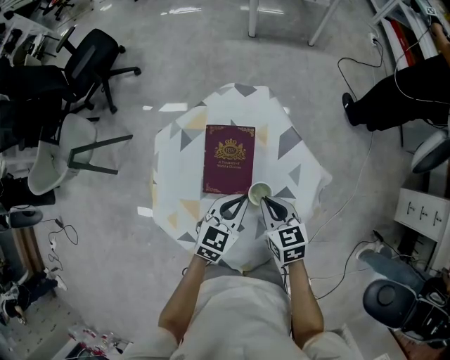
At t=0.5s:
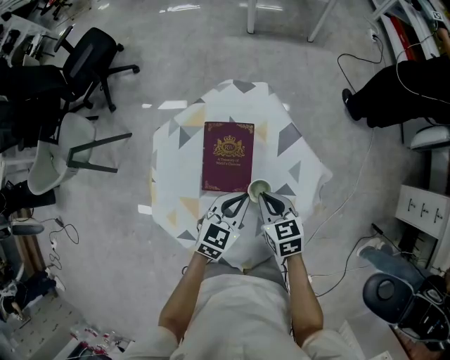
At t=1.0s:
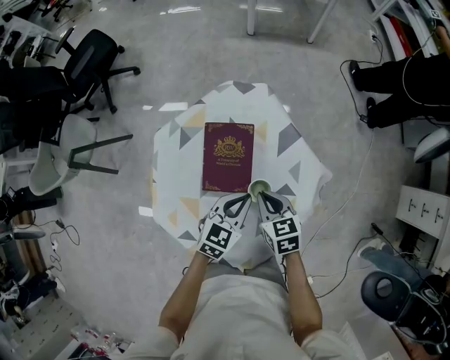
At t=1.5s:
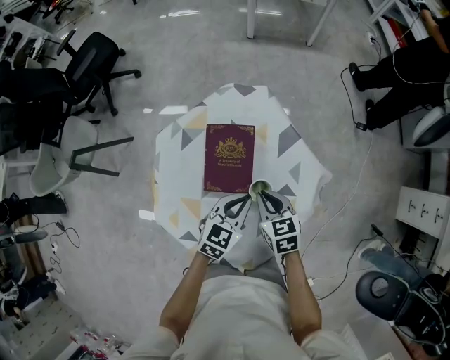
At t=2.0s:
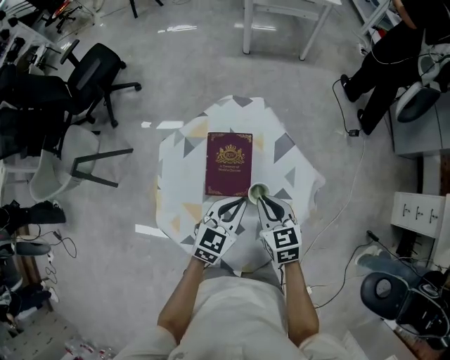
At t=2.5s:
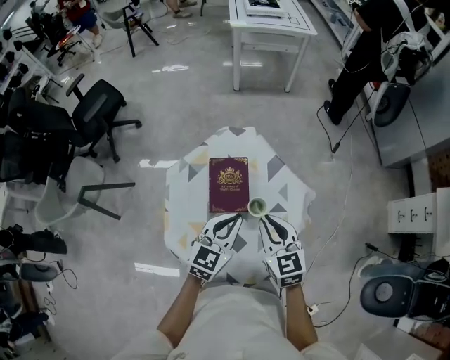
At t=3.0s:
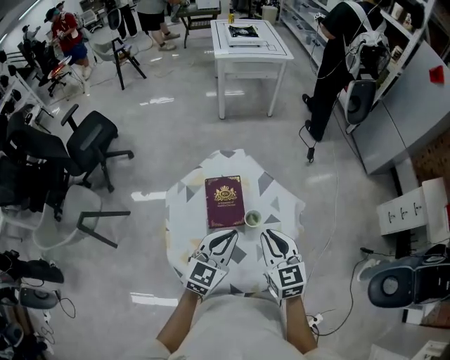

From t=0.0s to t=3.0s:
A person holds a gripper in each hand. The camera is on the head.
From t=0.0s to t=1.5s: There are only small adjustments of the grippers.
From t=1.5s to t=3.0s: Both grippers travel together upward, about 20 cm. The right gripper turns by approximately 30 degrees, while the left gripper rotates approximately 20 degrees.

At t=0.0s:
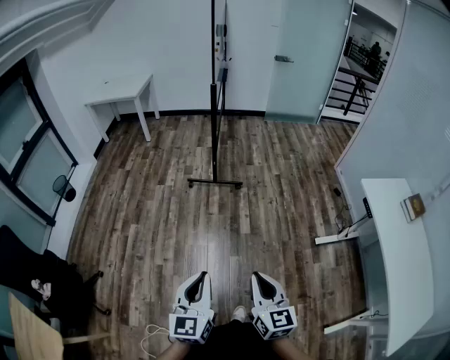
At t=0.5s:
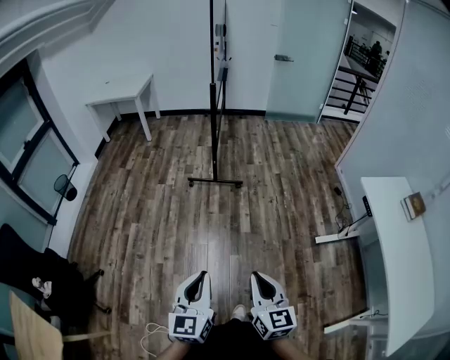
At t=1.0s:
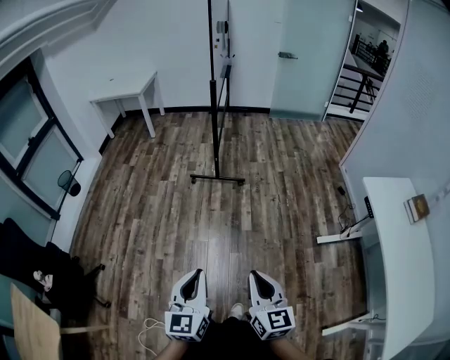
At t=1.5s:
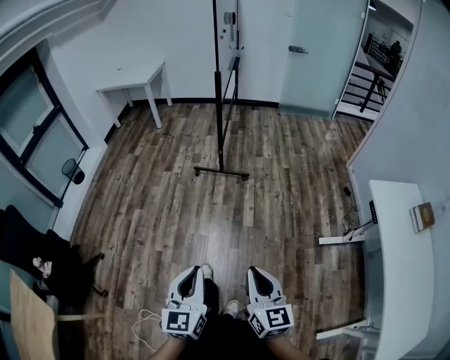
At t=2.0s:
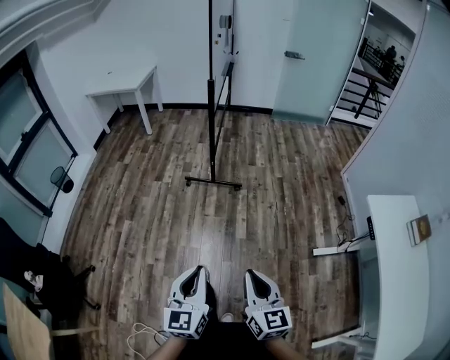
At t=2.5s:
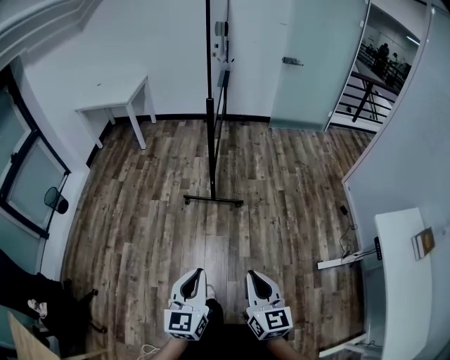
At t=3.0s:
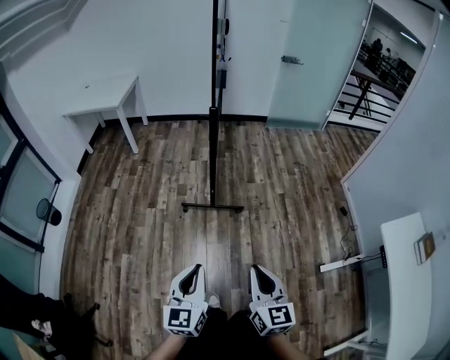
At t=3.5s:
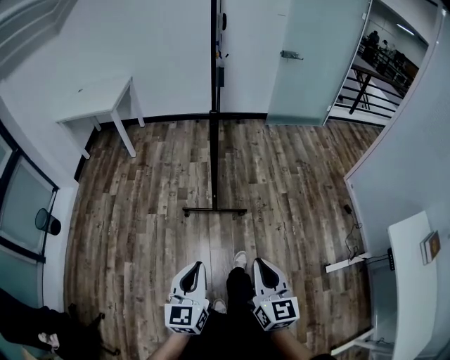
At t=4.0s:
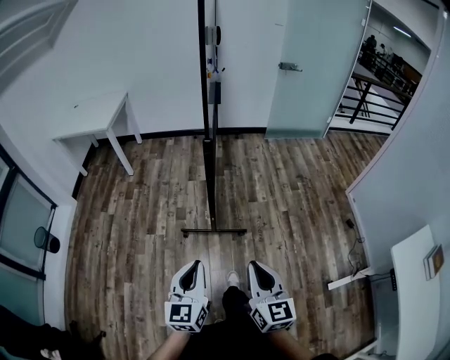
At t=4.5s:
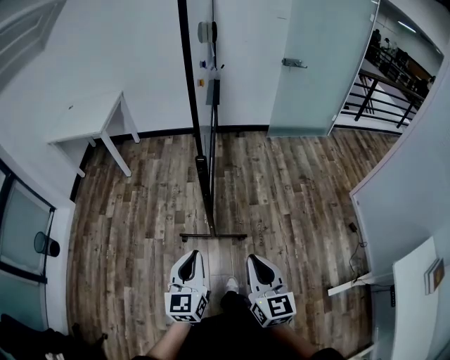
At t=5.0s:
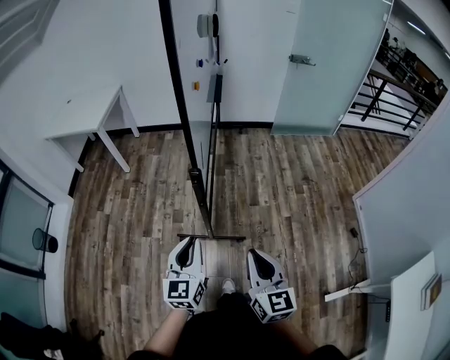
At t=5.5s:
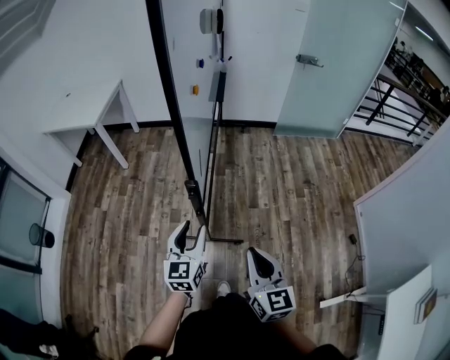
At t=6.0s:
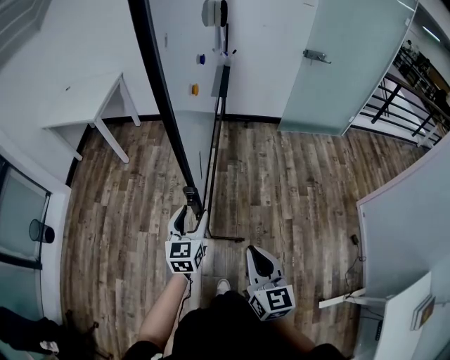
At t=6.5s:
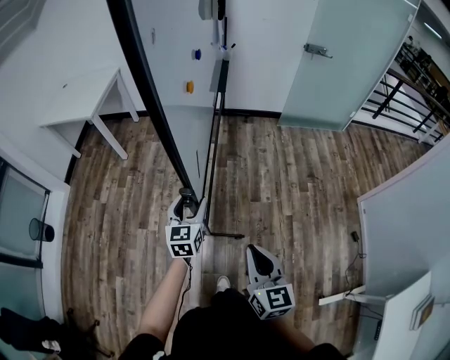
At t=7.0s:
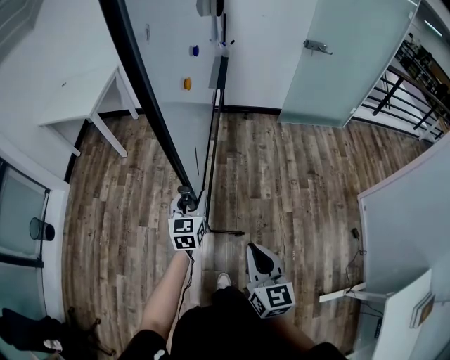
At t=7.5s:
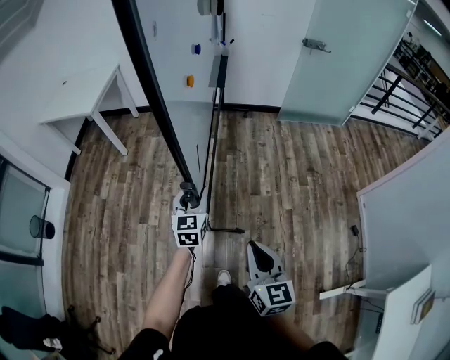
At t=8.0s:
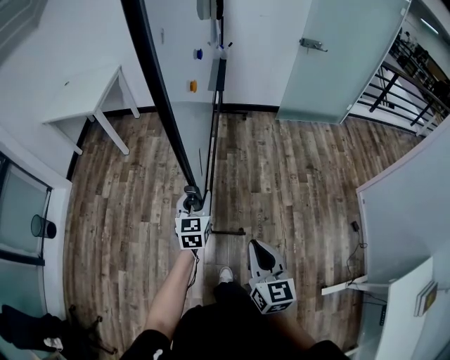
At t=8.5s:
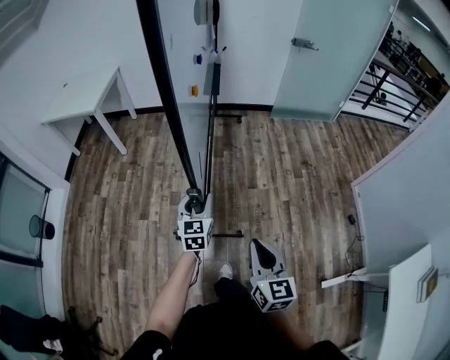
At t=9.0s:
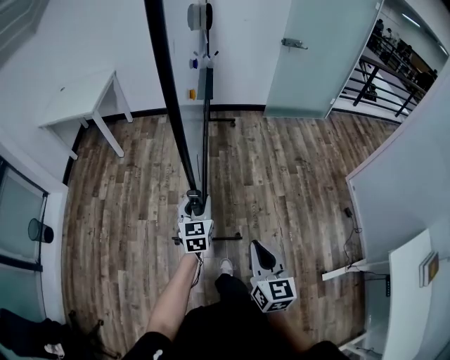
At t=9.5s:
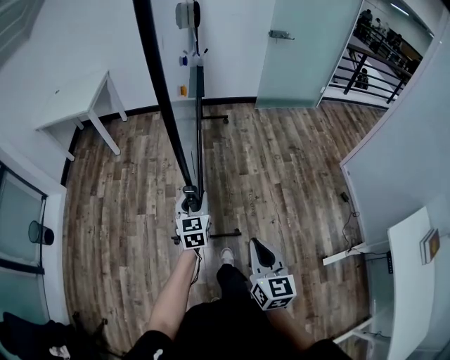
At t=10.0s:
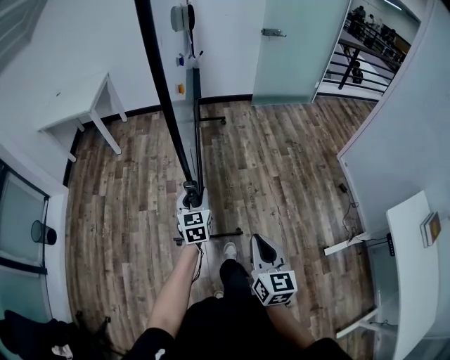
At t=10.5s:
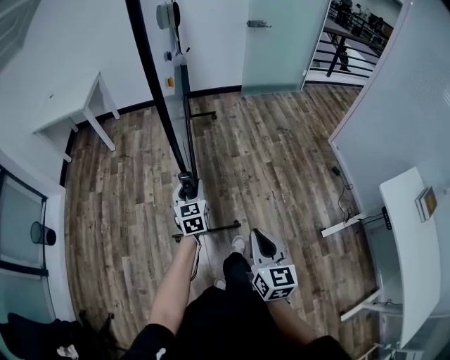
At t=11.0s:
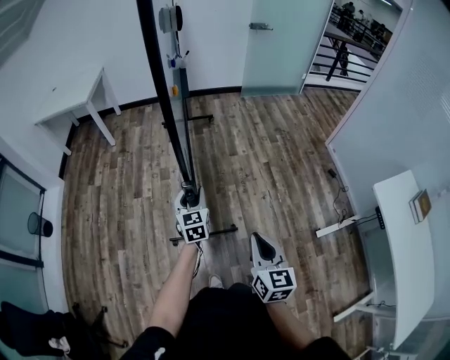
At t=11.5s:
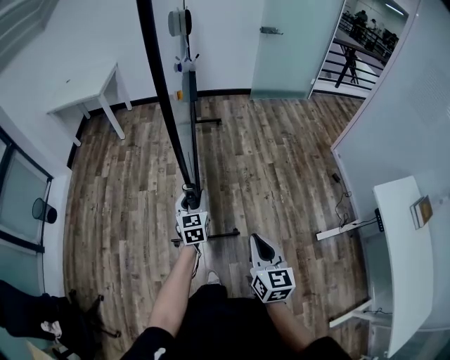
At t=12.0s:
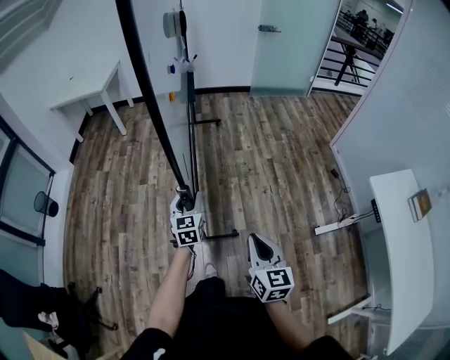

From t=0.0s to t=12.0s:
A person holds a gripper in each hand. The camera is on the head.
From t=0.0s to t=2.0s: Both grippers move forward and to the right, roughly 15 cm.
From t=2.0s to t=4.0s: Both grippers are carried forward, approximately 50 cm.
From t=4.0s to t=6.0s: The two grippers go approximately 35 cm forward. The left gripper opens its fingers.
From t=6.0s to t=8.0s: The right gripper shifts approximately 5 cm backward.
From t=8.0s to t=10.0s: Both grippers move backward, about 25 cm.
From t=10.0s to t=12.0s: The grippers both shift backward by approximately 25 cm.

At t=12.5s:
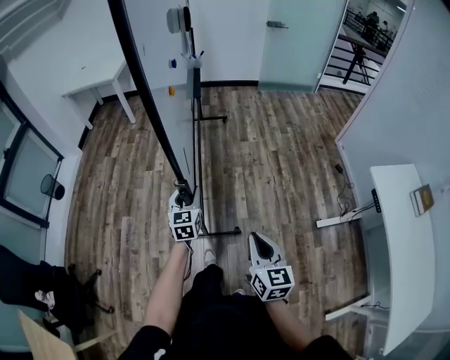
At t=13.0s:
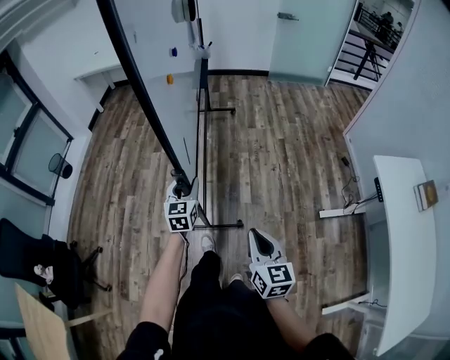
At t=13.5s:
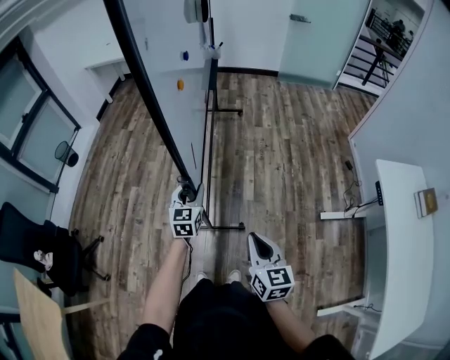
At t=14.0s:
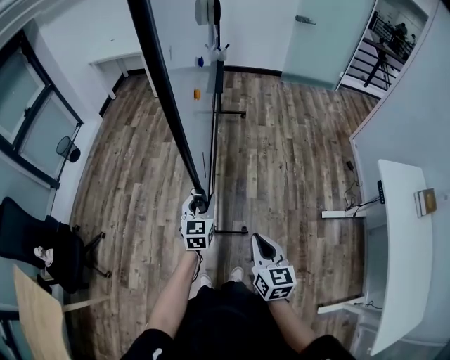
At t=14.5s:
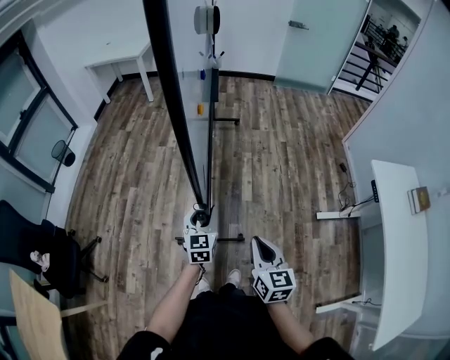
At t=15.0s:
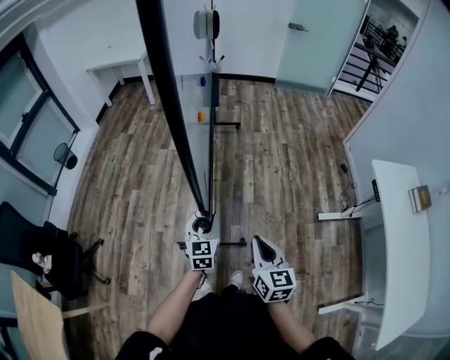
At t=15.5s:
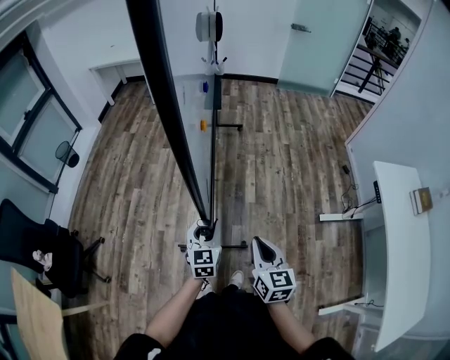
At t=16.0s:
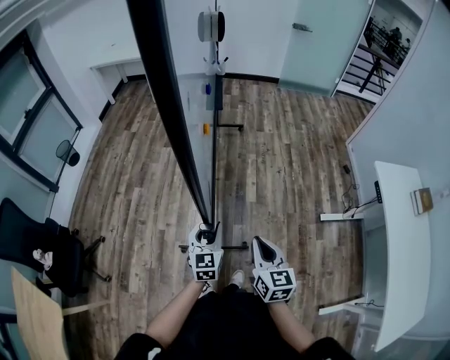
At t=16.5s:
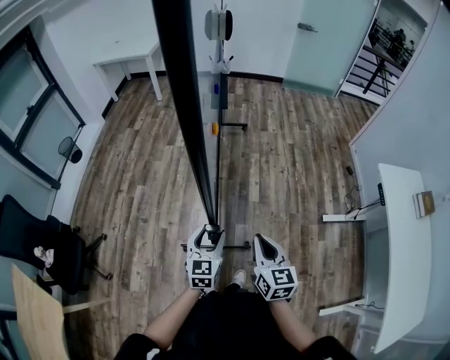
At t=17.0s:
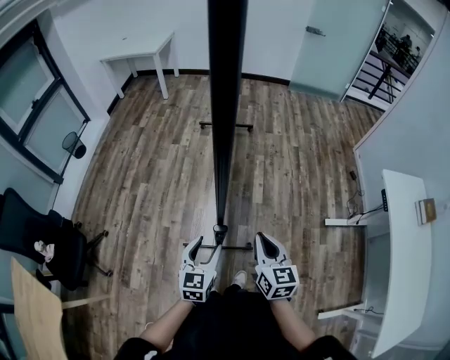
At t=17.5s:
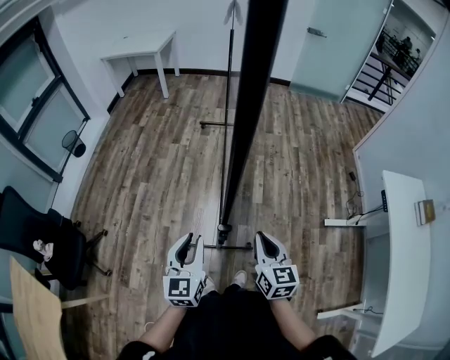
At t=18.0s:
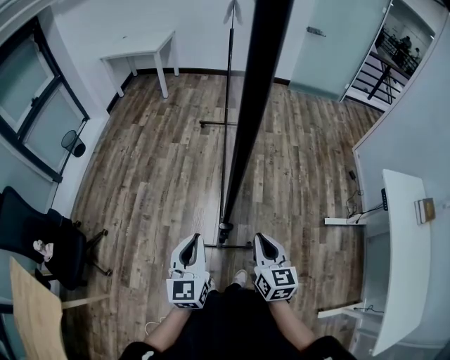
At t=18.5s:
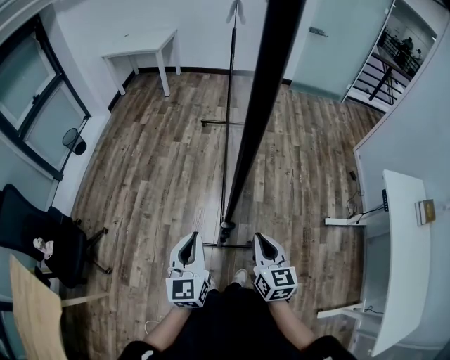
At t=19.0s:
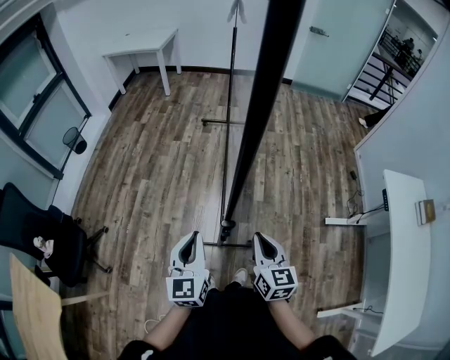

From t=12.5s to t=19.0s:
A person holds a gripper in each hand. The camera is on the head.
From t=12.5s to t=14.5s: The right gripper shifts about 15 cm backward. Meanwhile the left gripper heads backward, covering approximately 25 cm.
From t=14.5s to t=17.0s: The left gripper goes roughly 15 cm backward.
From t=17.0s to t=19.0s: The left gripper moves upward and to the left, some 10 cm, and closes its fingers.

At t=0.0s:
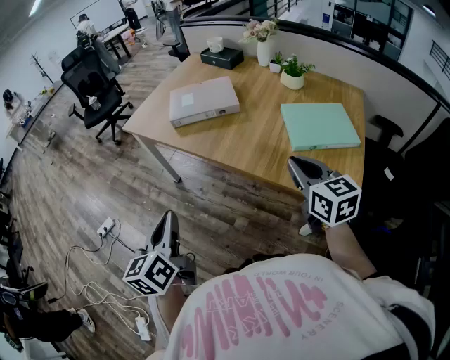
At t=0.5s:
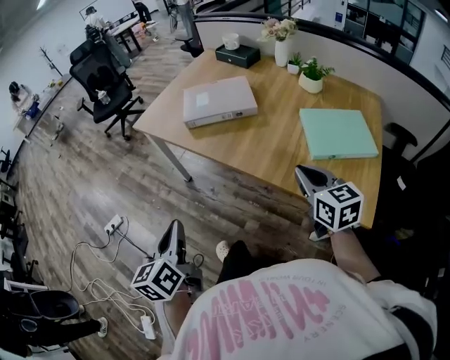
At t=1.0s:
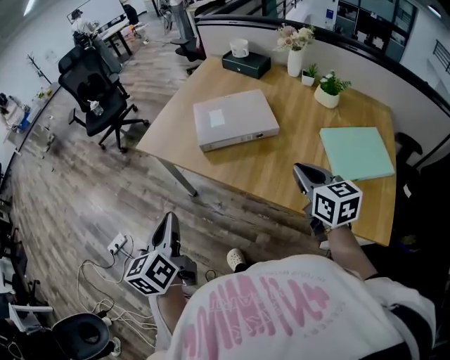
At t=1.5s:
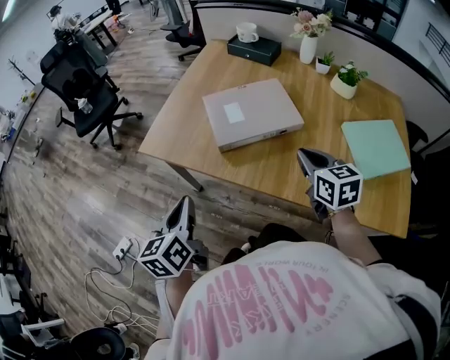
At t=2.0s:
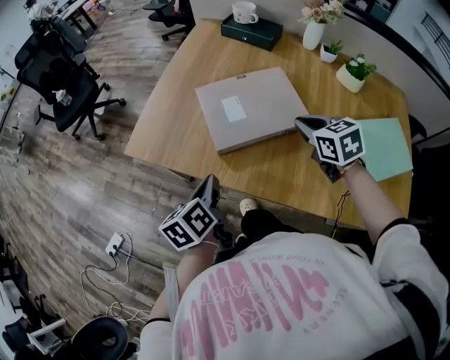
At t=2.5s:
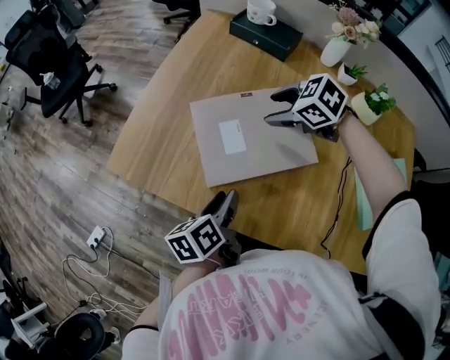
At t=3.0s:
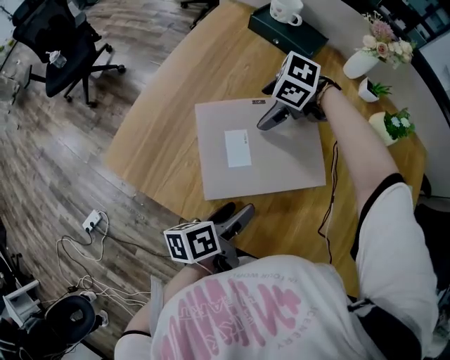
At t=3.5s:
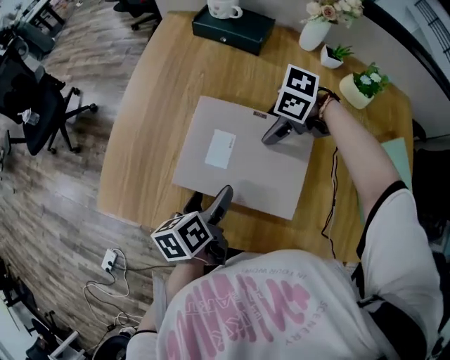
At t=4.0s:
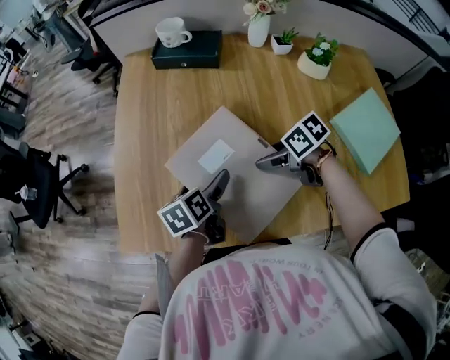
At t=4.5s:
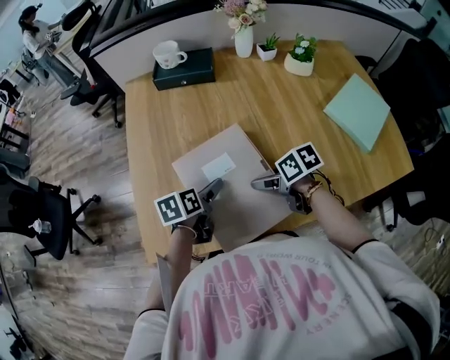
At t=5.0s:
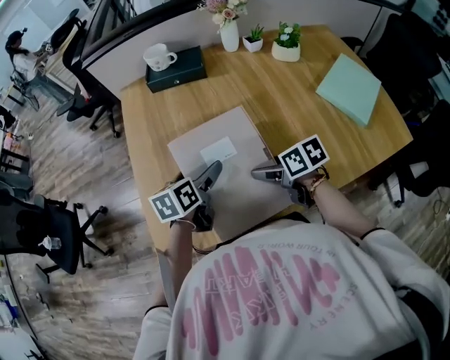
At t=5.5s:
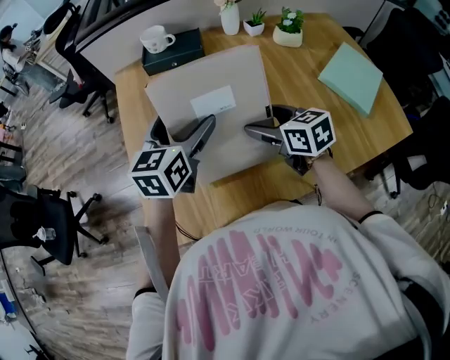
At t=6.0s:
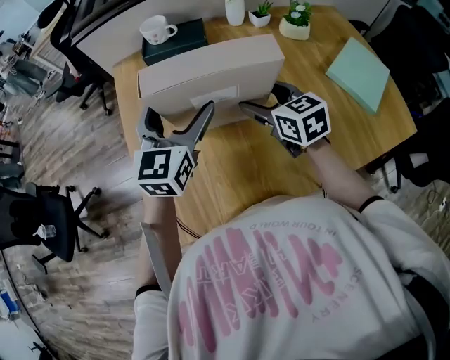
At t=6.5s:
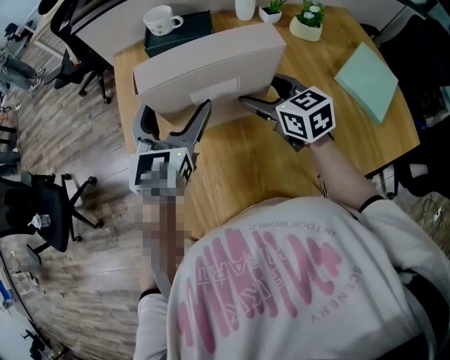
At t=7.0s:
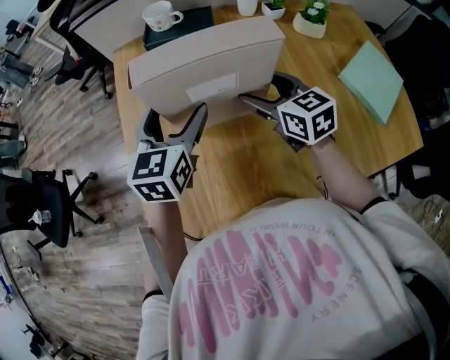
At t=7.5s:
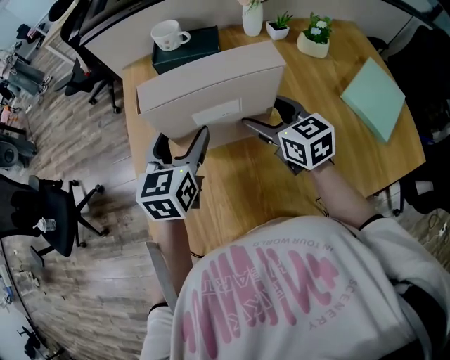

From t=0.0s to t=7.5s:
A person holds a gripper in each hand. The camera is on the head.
From t=0.0s to t=2.0s: The two grippers travel together, forward, about 40 cm. The right gripper rotates roughly 20 degrees, while the left gripper turns by approximately 30 degrees.
From t=2.0s to t=4.0s: The right gripper shifts some 10 cm downward, swivels some 40 degrees, and opens its fingers; the left gripper moves about 20 cm, changes its angle by about 30 degrees, and opens its fingers.
From t=4.0s to t=5.5s: The right gripper heads upward, covering some 10 cm, and turns by approximately 50 degrees; the left gripper is displaced upward by some 15 cm, and rotates around the line of its fingers by some 40 degrees, clockwise from behind.
From t=5.5s to t=7.5s: The left gripper shifts by approximately 5 cm; the right gripper goes some 10 cm forward.
